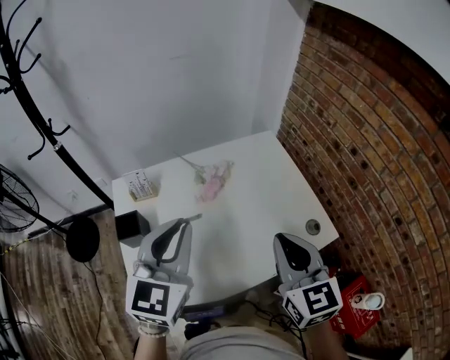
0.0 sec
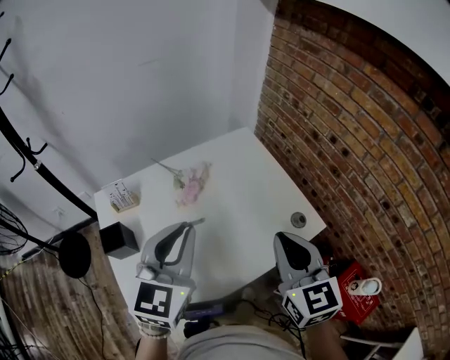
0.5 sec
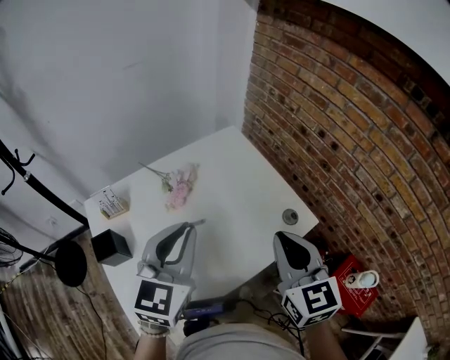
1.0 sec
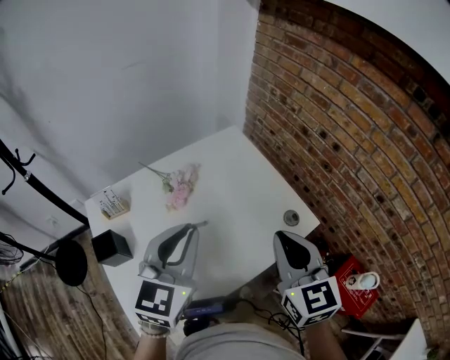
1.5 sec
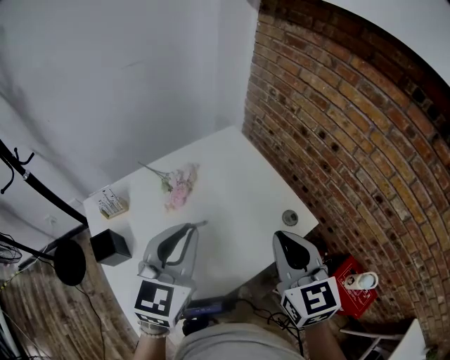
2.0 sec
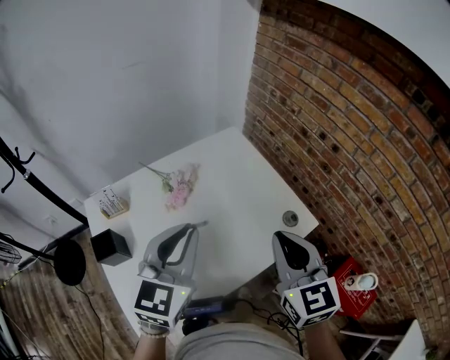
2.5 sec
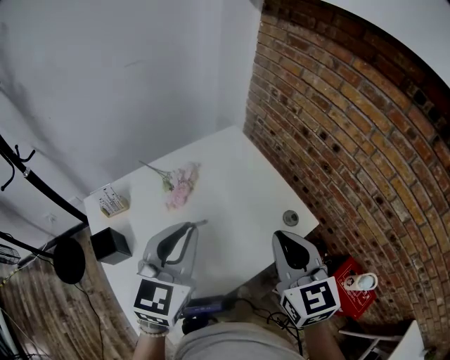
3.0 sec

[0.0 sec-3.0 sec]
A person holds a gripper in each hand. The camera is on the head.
0.0 sec to 1.5 sec: The grippers both shift to the right by about 10 cm.
1.5 sec to 3.0 sec: Both grippers stay put.

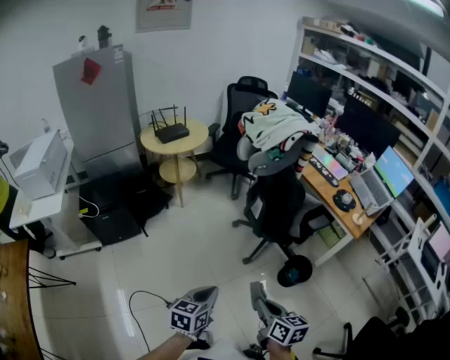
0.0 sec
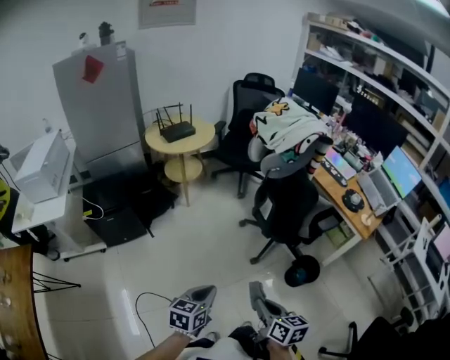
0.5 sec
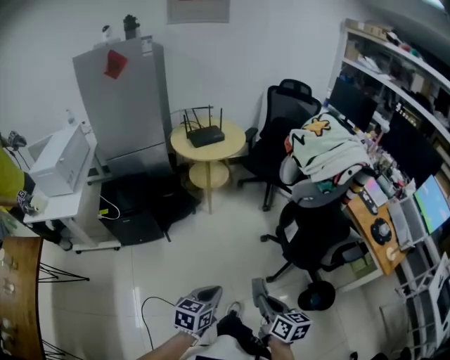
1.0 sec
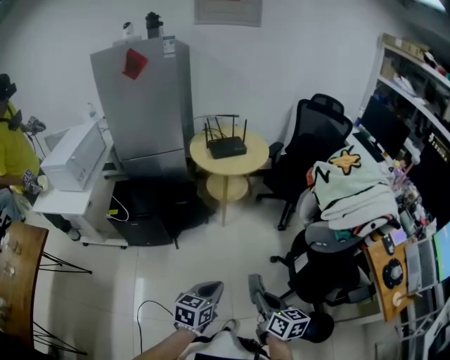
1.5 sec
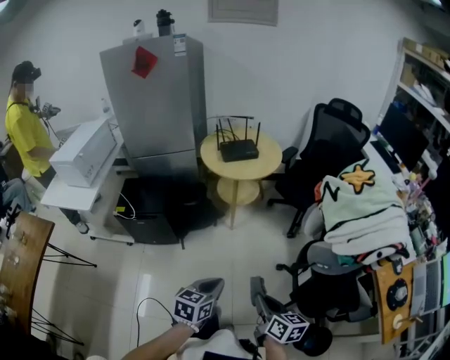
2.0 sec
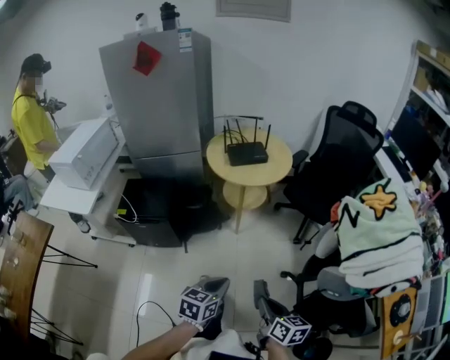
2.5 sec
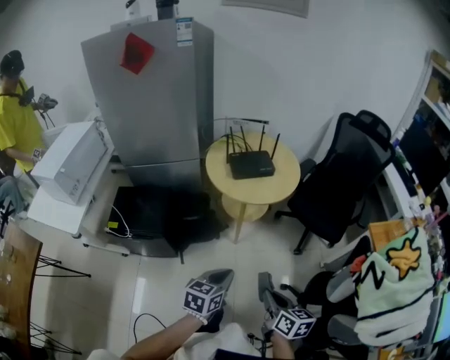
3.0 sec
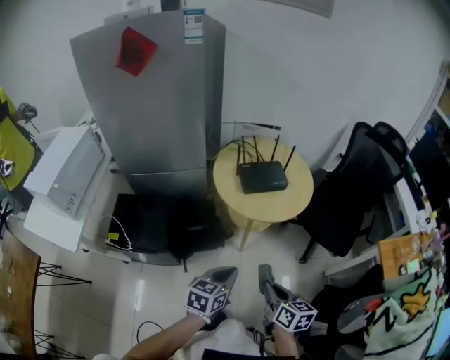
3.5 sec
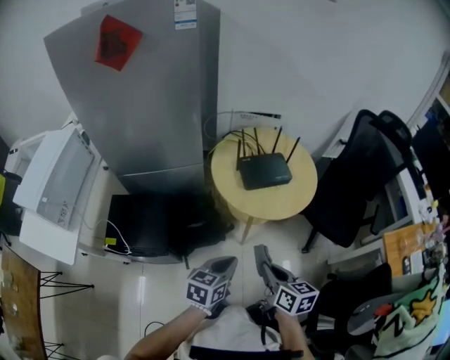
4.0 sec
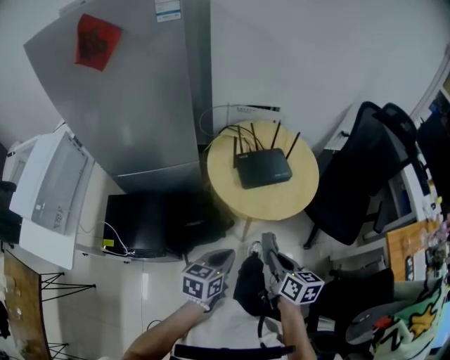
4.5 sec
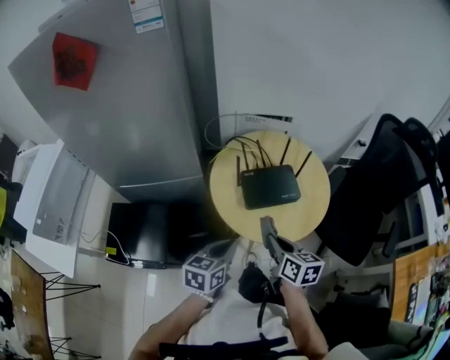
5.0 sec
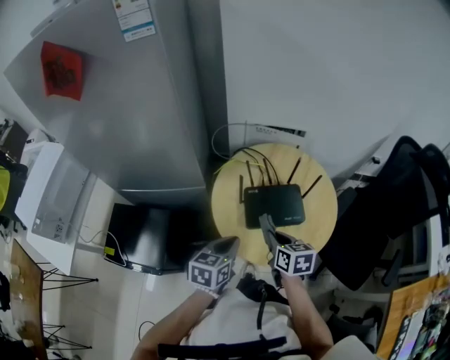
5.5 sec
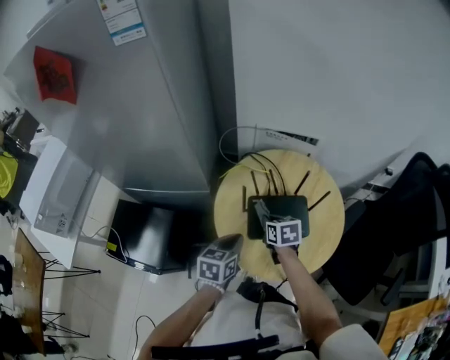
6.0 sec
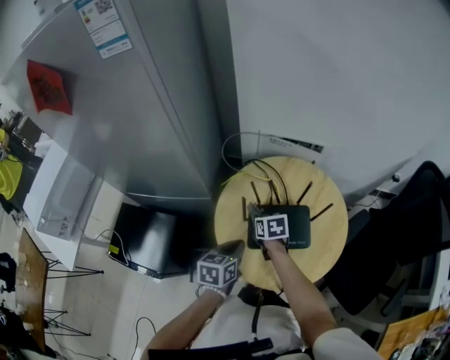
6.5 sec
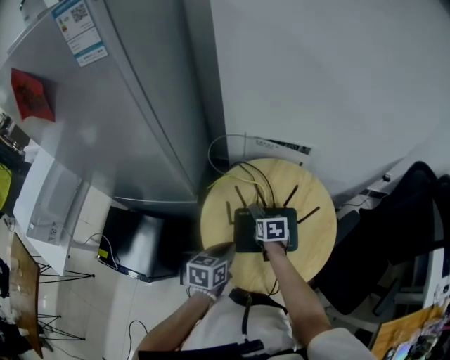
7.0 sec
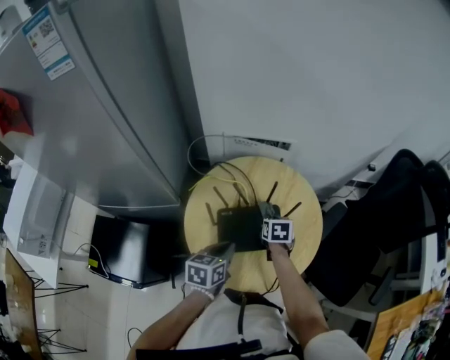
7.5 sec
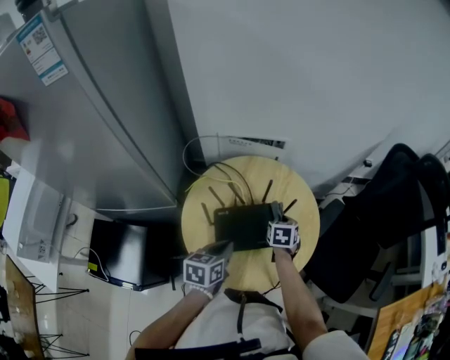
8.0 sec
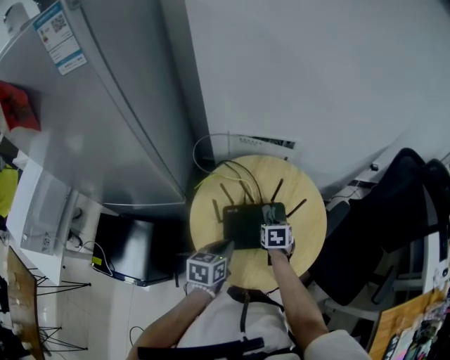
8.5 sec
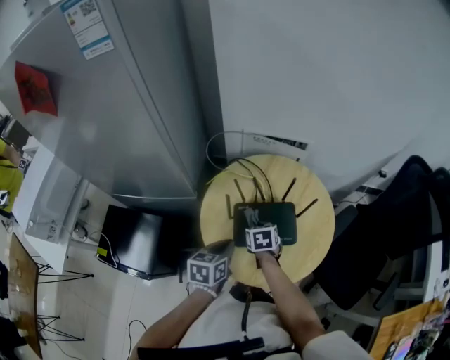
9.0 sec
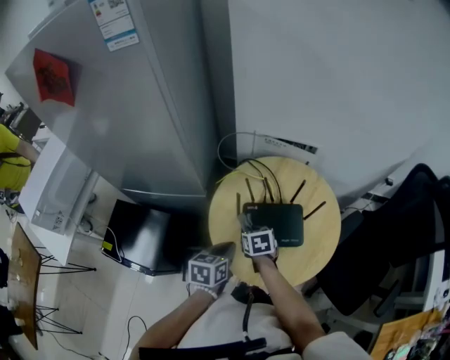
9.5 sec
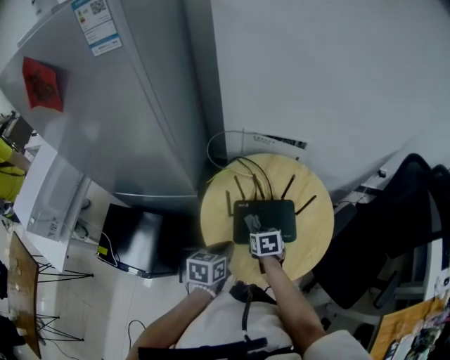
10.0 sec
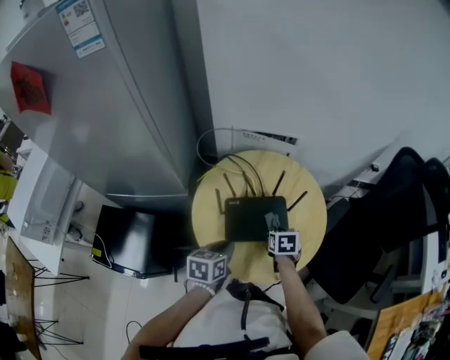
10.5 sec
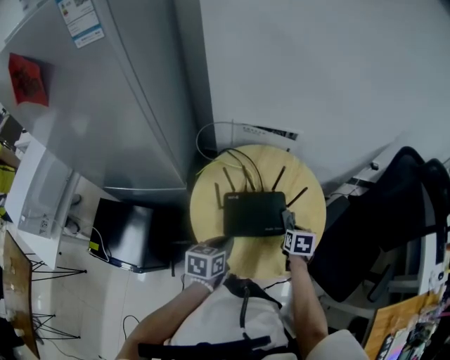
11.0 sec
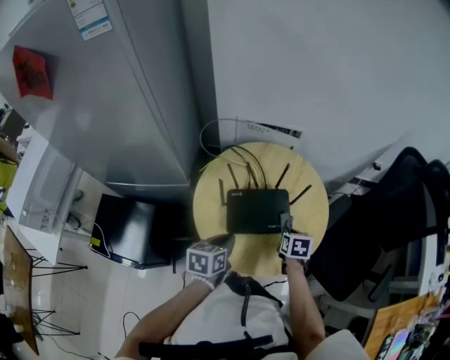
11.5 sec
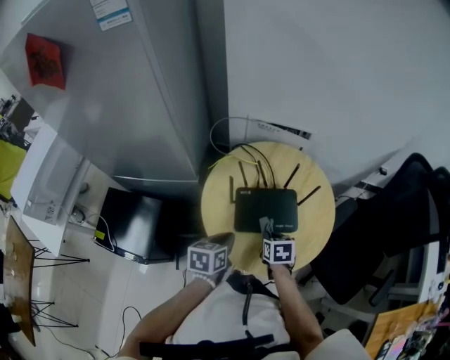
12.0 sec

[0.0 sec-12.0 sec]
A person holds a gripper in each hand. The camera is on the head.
0.0 sec to 2.0 sec: The grippers both shift forward by about 40 cm. The right gripper changes its angle by roughly 20 degrees. The left gripper rotates roughly 20 degrees.
2.0 sec to 4.0 sec: The pair of grippers is taken forward, some 50 cm.
4.0 sec to 6.0 sec: The two grippers go roughly 40 cm forward. The right gripper turns by approximately 30 degrees. The left gripper rotates about 20 degrees.
6.0 sec to 8.0 sec: The right gripper moves approximately 20 cm, and rotates roughly 30 degrees. Meanwhile the left gripper shifts by approximately 10 cm.
8.0 sec to 10.0 sec: The right gripper moves approximately 20 cm, and swivels about 20 degrees. The left gripper shifts by approximately 5 cm.
10.0 sec to 12.0 sec: The right gripper goes to the right and returns, about 20 cm each way.

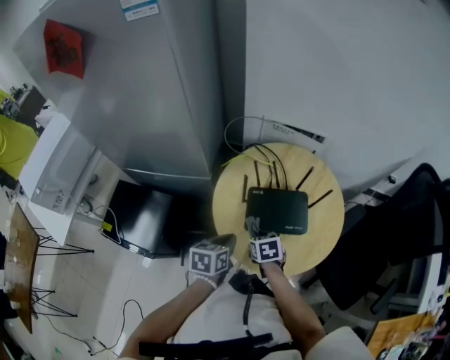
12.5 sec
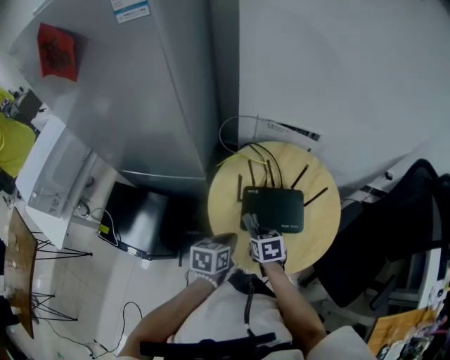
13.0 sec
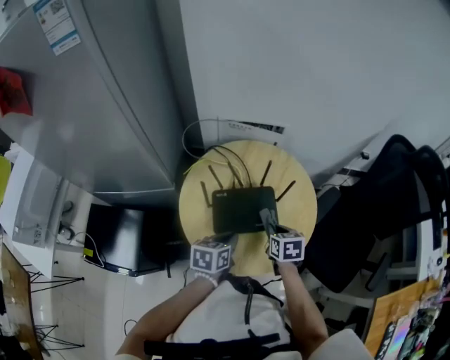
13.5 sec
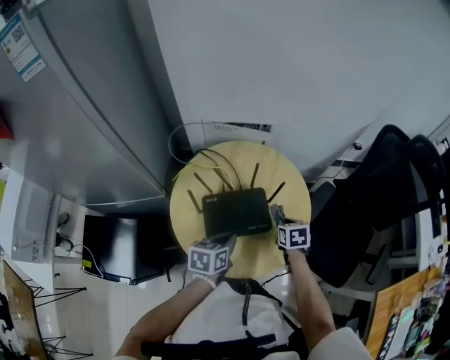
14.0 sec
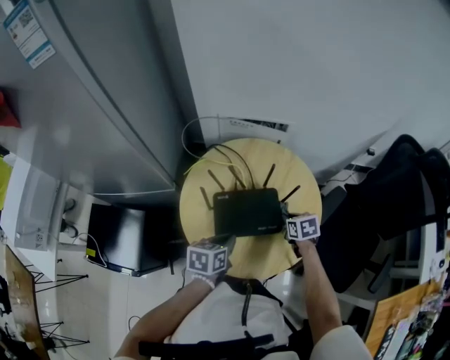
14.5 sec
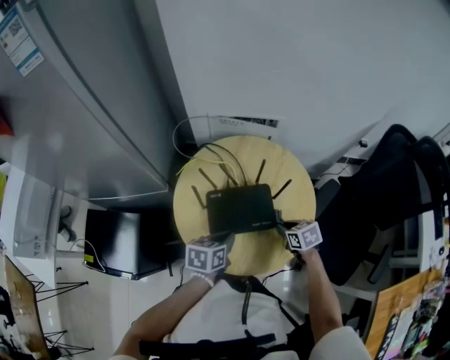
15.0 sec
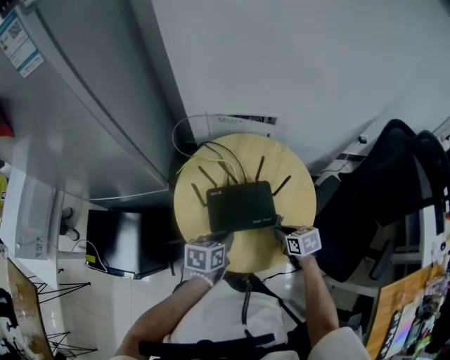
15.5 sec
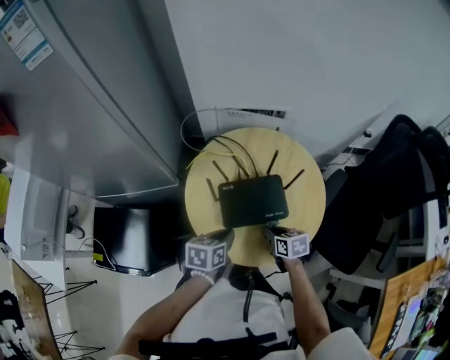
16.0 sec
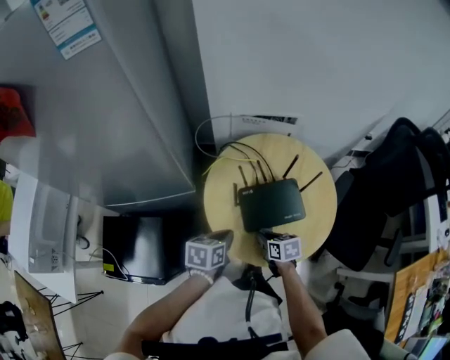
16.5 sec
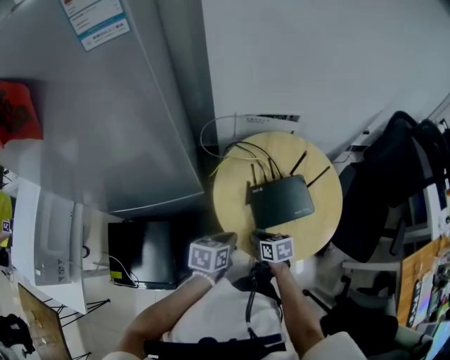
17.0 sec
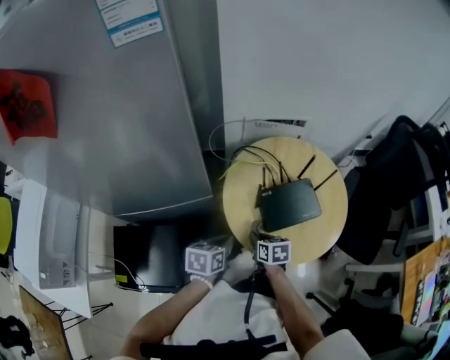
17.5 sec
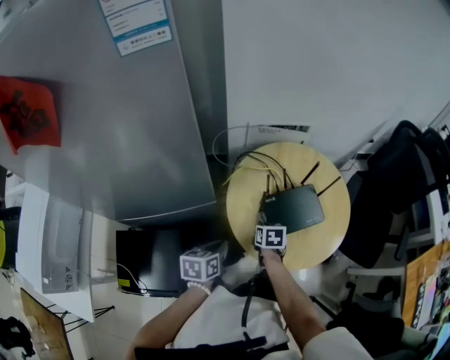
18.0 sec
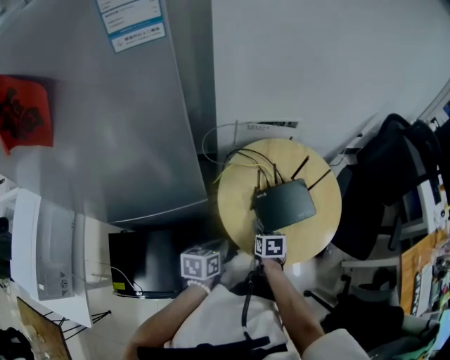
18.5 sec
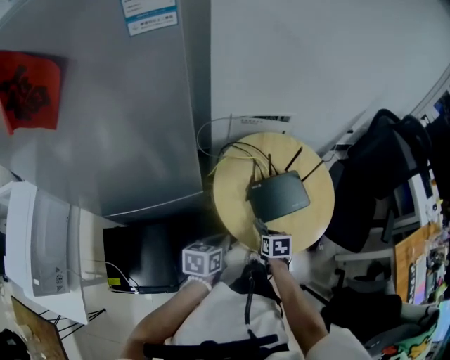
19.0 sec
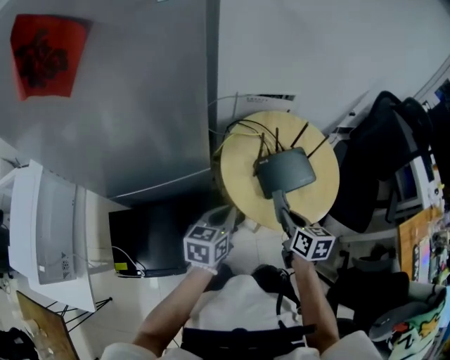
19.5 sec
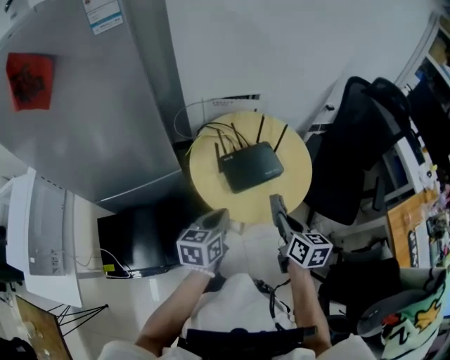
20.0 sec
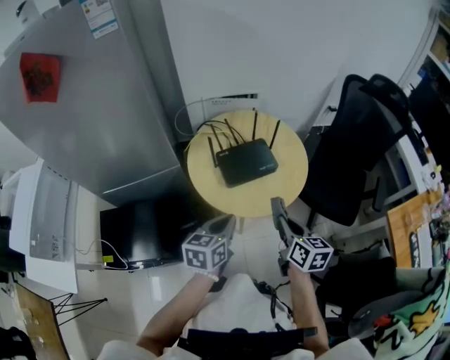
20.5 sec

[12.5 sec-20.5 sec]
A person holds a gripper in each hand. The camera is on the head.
12.5 sec to 14.5 sec: The left gripper heads to the right and forward, covering approximately 10 cm. Meanwhile the right gripper travels to the right and forward by approximately 25 cm.
14.5 sec to 16.5 sec: The left gripper goes some 10 cm to the left; the right gripper travels to the left and backward by approximately 25 cm.
16.5 sec to 18.5 sec: The two grippers go roughly 10 cm to the left. The right gripper turns by some 20 degrees.
18.5 sec to 20.5 sec: The right gripper travels to the right, upward and backward by roughly 35 cm, and tilts its fingers roughly 30 degrees upward. Meanwhile the left gripper is displaced to the right, backward and upward by about 25 cm.

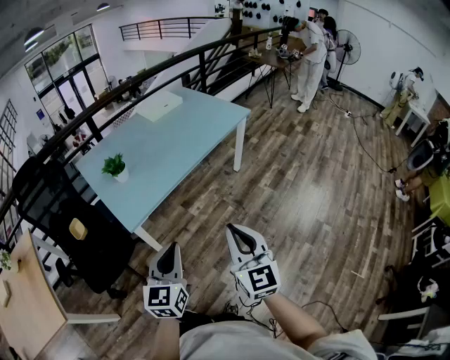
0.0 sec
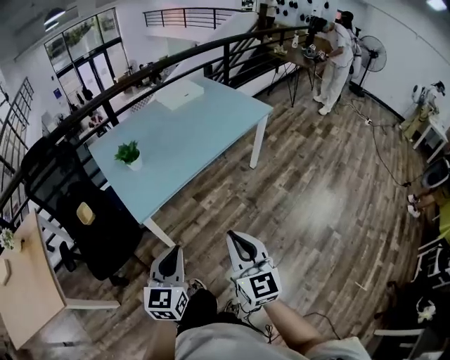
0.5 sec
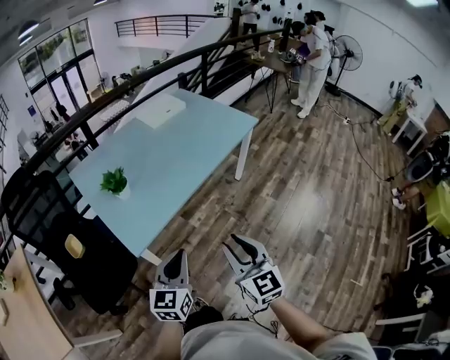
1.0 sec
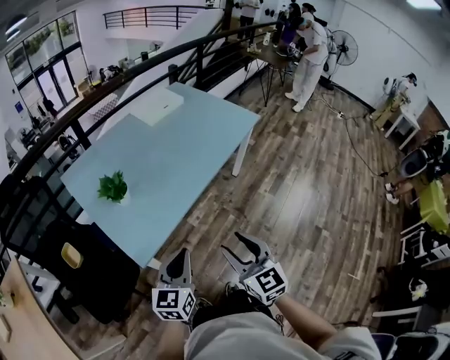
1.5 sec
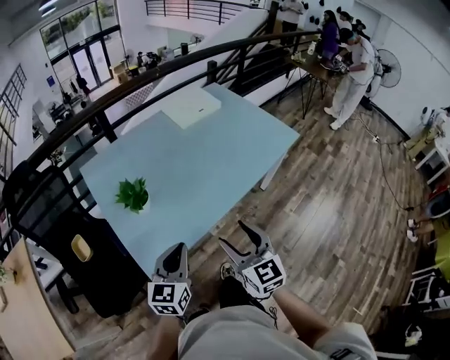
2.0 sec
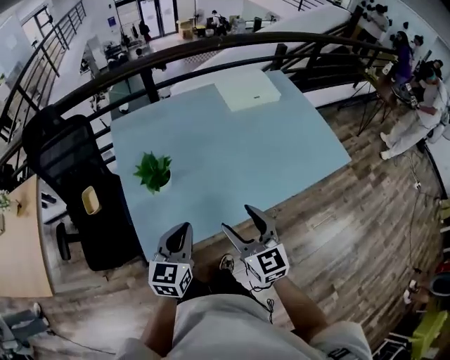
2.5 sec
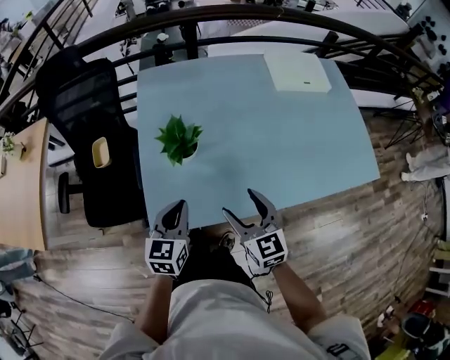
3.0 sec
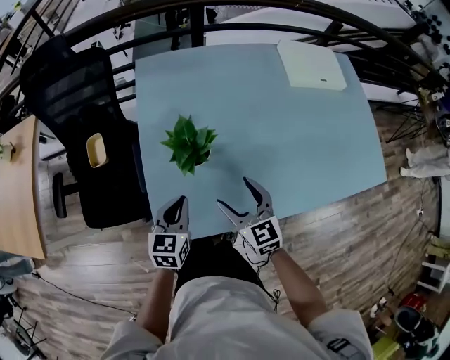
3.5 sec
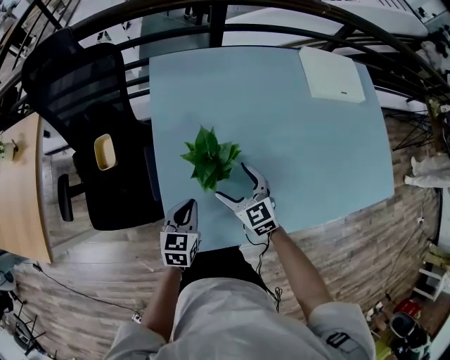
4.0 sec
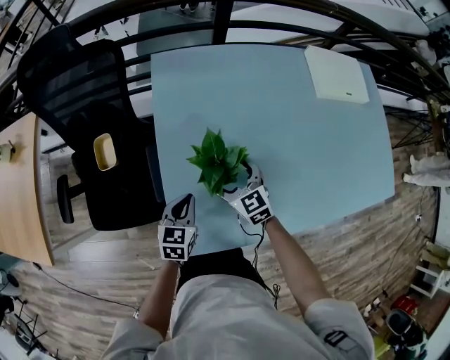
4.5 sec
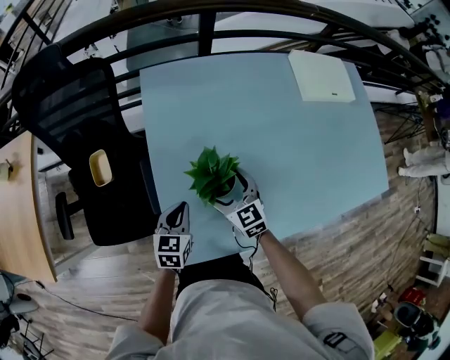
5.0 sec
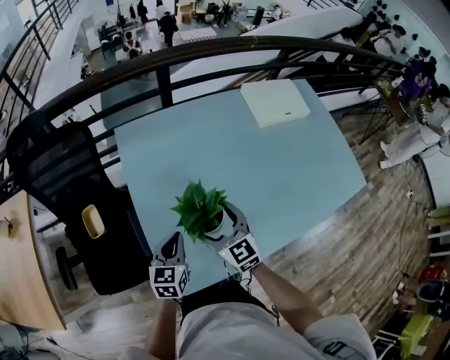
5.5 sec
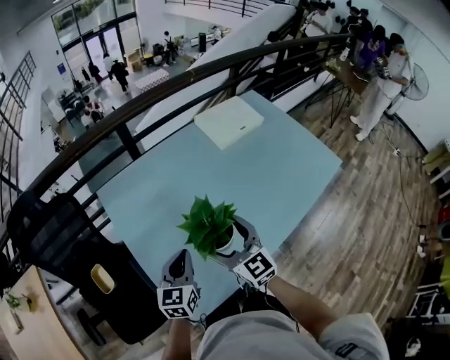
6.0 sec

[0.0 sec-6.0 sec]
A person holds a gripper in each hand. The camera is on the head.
0.0 sec to 2.0 sec: The grippers both shift forward by approximately 30 cm. The right gripper opens up.
2.0 sec to 4.0 sec: The left gripper ends up some 30 cm from where it was, and swivels about 40 degrees. The right gripper changes place by roughly 40 cm, and swivels some 40 degrees.
4.0 sec to 6.0 sec: The two grippers go some 20 cm upward and to the right. The right gripper rotates approximately 30 degrees, while the left gripper swivels some 30 degrees.
